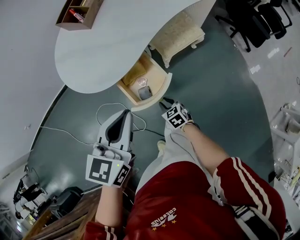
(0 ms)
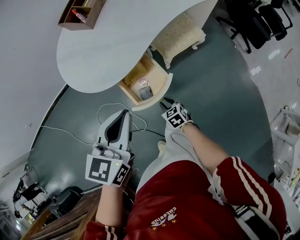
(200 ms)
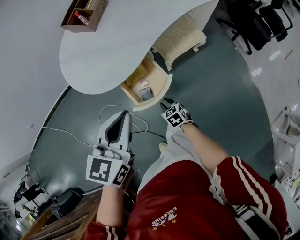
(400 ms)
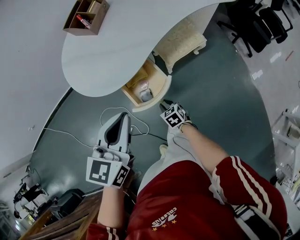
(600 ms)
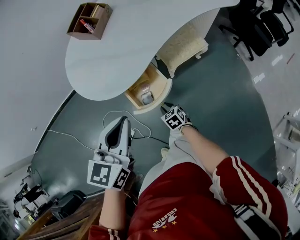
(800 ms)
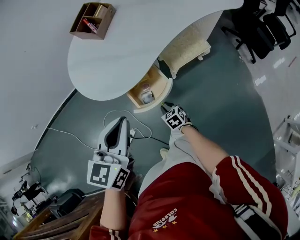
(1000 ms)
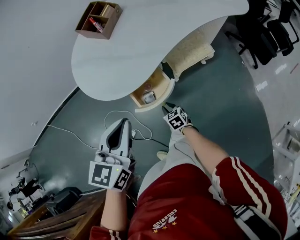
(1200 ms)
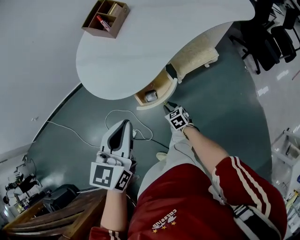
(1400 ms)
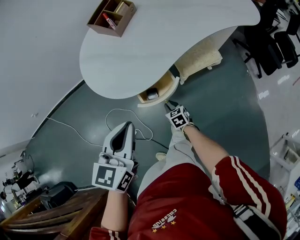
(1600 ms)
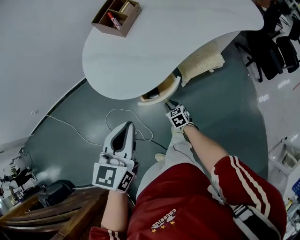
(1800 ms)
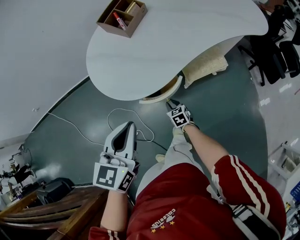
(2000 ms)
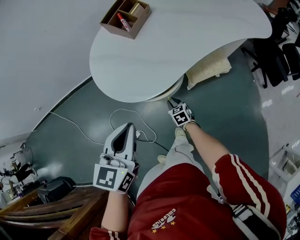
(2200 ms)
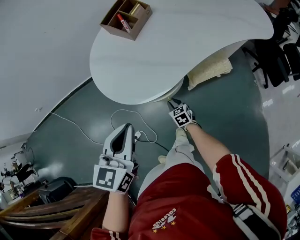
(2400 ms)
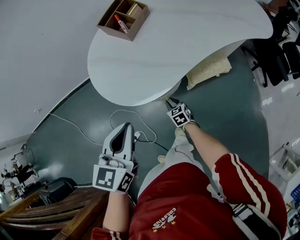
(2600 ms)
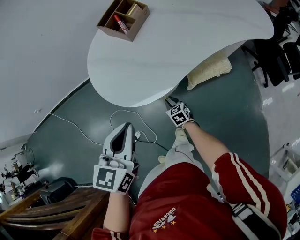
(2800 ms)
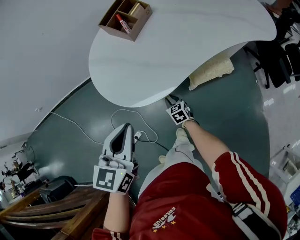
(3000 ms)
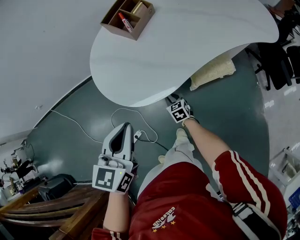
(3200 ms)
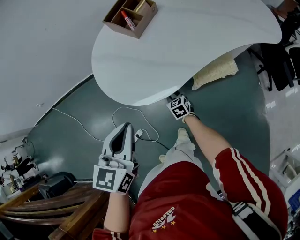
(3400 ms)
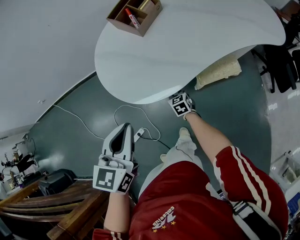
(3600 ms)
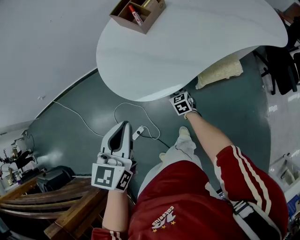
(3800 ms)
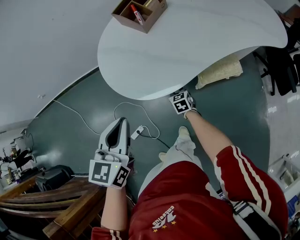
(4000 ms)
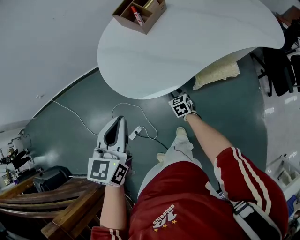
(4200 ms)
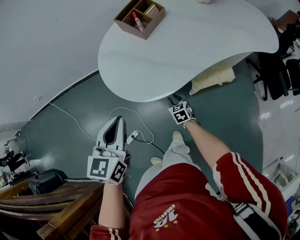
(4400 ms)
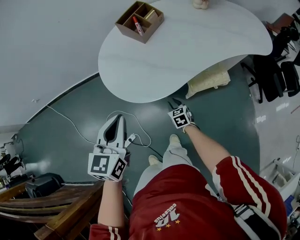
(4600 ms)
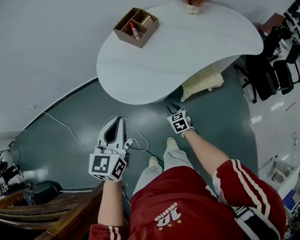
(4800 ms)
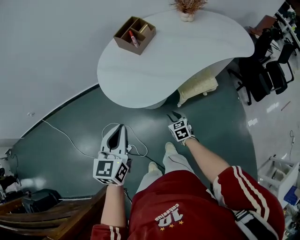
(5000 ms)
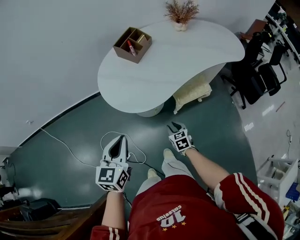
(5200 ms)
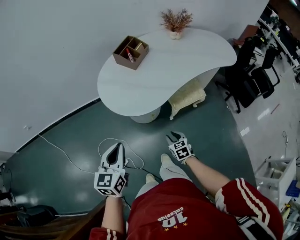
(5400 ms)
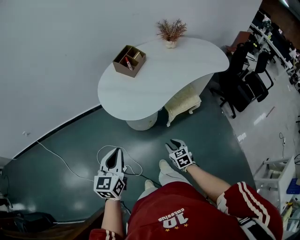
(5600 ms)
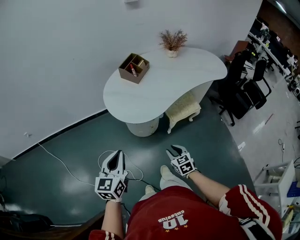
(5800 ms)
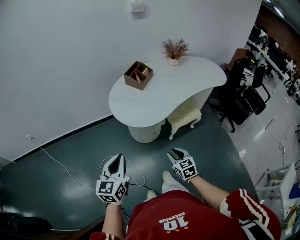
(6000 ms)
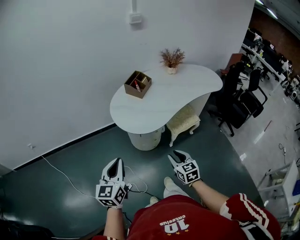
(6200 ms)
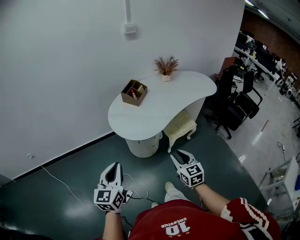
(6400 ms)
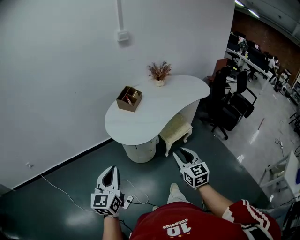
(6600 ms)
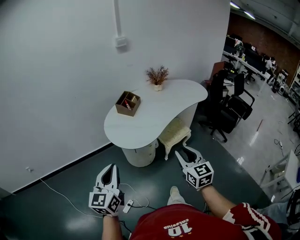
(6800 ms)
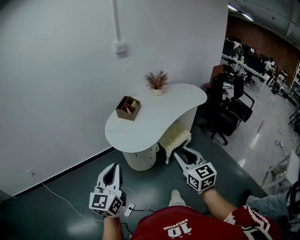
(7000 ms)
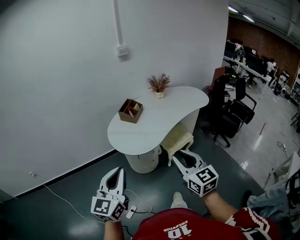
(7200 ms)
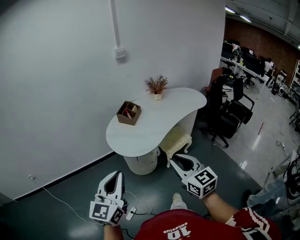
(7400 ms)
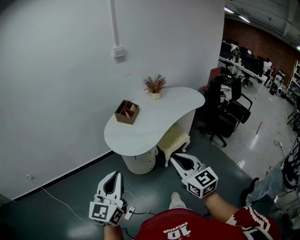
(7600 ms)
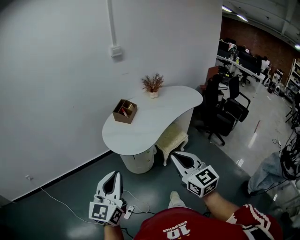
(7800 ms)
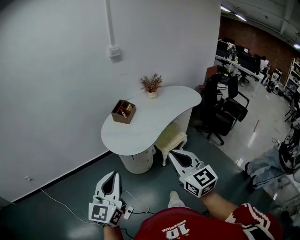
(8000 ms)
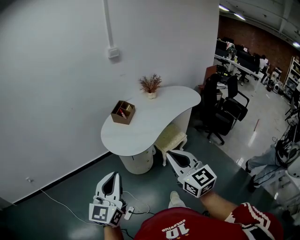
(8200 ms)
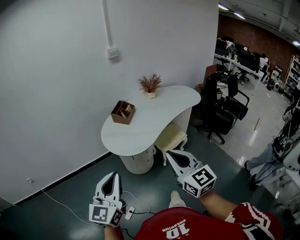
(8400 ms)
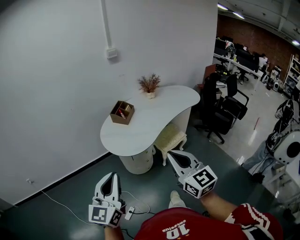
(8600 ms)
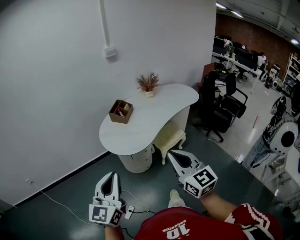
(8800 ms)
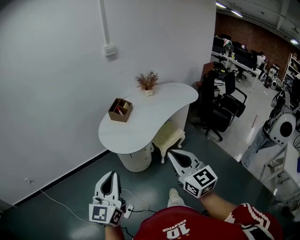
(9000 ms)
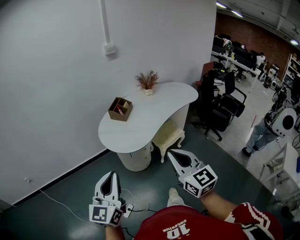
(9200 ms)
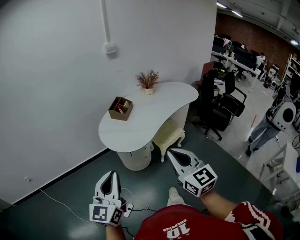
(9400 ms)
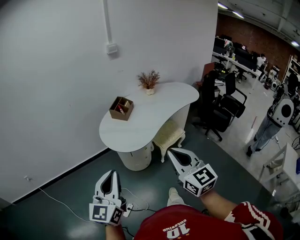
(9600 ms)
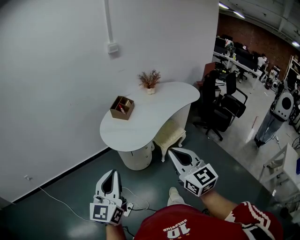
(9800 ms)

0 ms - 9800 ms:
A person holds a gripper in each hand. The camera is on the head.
0 ms - 1400 ms: The left gripper shifts by about 5 cm, while the right gripper travels forward by about 5 cm.
1400 ms - 2800 ms: The left gripper is displaced forward by approximately 5 cm. Meanwhile the right gripper moves forward, approximately 10 cm.
2800 ms - 4200 ms: The left gripper is displaced to the left by some 5 cm.
4200 ms - 5600 ms: The right gripper travels backward and upward by about 30 cm. Meanwhile the left gripper goes approximately 15 cm backward and to the left.
5600 ms - 7000 ms: The left gripper shifts some 20 cm upward and backward, and rotates about 20 degrees. The right gripper heads upward, covering some 35 cm, and tips its fingers upward by some 30 degrees.
7000 ms - 8400 ms: The right gripper heads upward, covering roughly 10 cm, and closes. Meanwhile the left gripper shifts by some 5 cm.
8400 ms - 9800 ms: The grippers make only small movements.

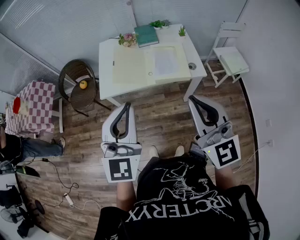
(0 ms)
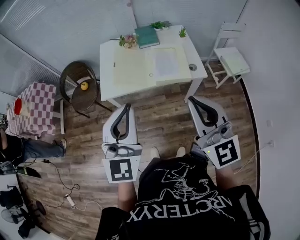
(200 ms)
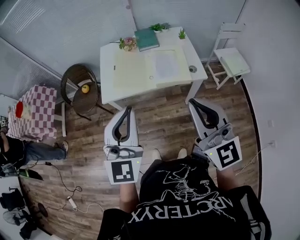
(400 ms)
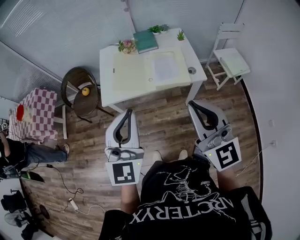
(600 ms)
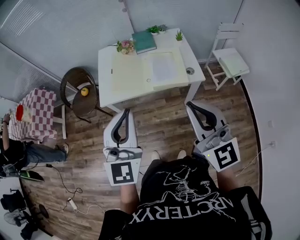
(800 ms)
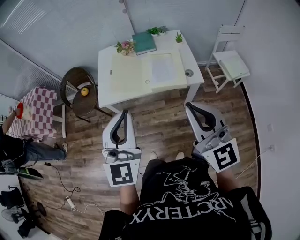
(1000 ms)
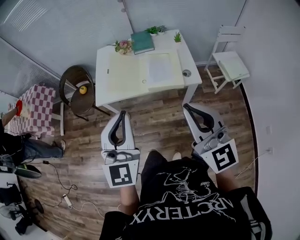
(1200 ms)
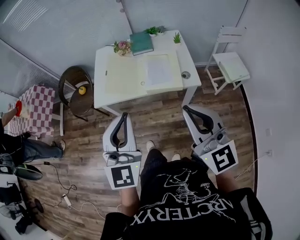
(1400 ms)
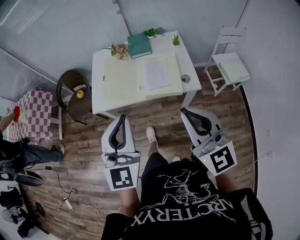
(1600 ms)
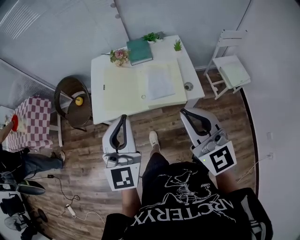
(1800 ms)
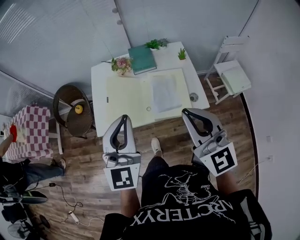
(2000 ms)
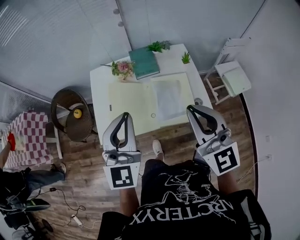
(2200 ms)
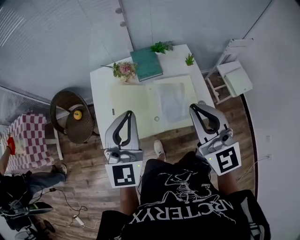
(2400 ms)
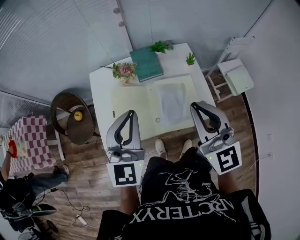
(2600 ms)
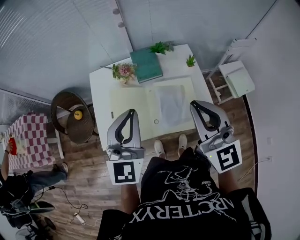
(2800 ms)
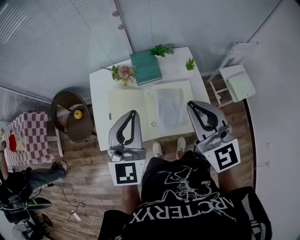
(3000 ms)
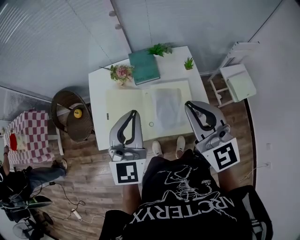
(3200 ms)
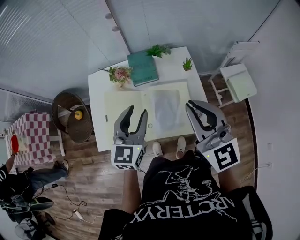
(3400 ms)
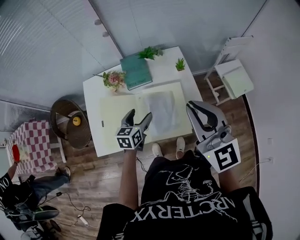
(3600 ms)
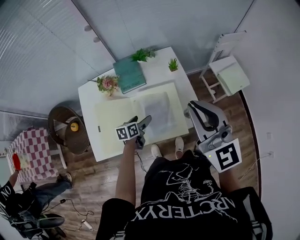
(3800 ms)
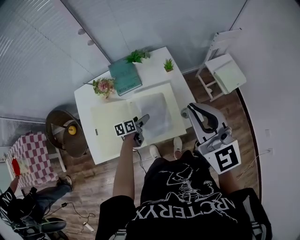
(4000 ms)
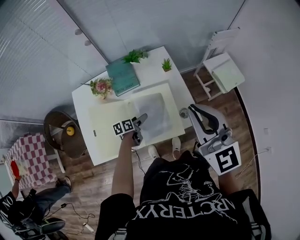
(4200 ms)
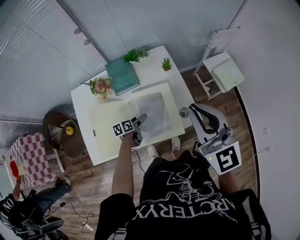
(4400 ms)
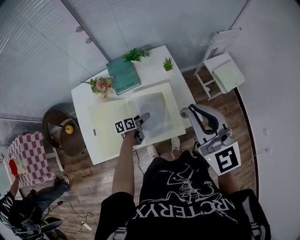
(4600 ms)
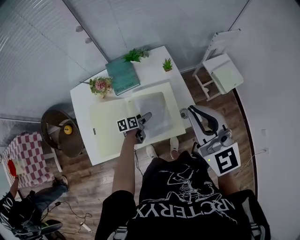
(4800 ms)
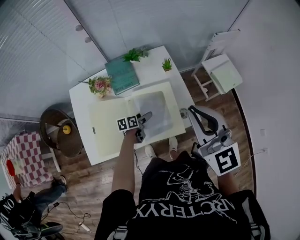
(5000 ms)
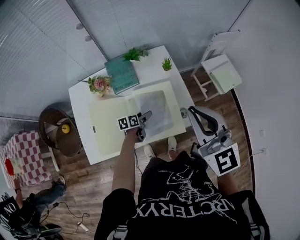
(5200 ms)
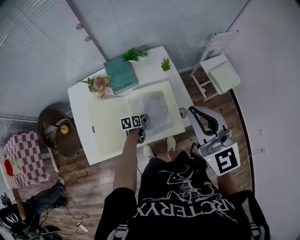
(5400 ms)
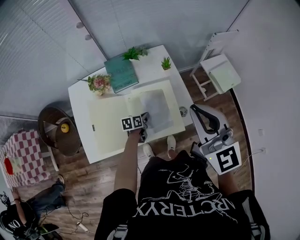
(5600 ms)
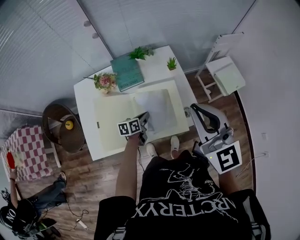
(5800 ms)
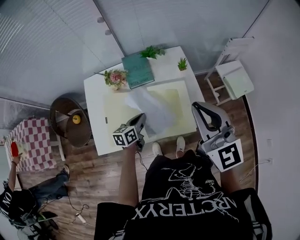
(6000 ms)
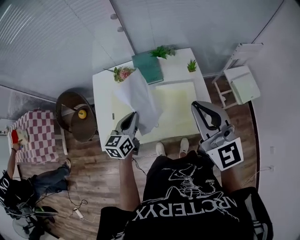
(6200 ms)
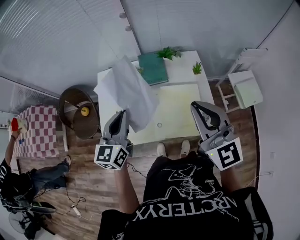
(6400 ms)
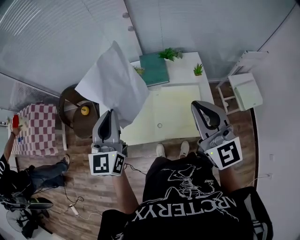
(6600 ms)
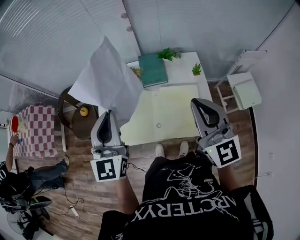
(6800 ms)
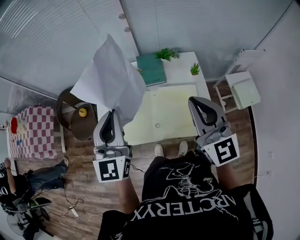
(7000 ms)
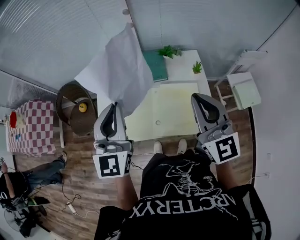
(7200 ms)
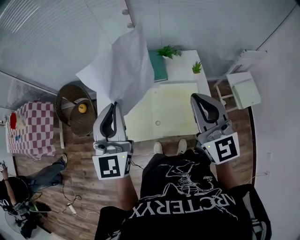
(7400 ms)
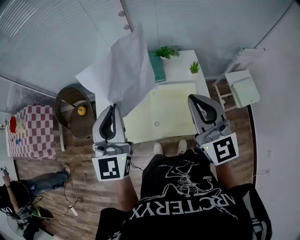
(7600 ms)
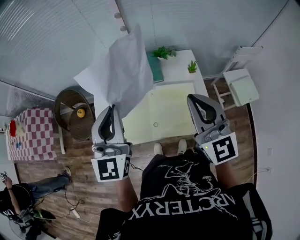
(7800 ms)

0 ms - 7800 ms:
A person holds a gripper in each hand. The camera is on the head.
0 ms - 1600 ms: Both grippers move to the right and forward, about 10 cm.
1600 ms - 3200 ms: The two grippers go roughly 30 cm forward.
3200 ms - 4600 ms: The right gripper is displaced to the right by roughly 10 cm; the left gripper goes approximately 40 cm downward, rotates approximately 80 degrees, and opens up.
4600 ms - 6200 ms: The right gripper heads to the left, covering some 5 cm; the left gripper heads upward and to the left, covering about 25 cm, rotates approximately 40 degrees, and closes up.
6200 ms - 7800 ms: The left gripper goes roughly 20 cm upward, and rotates roughly 40 degrees.

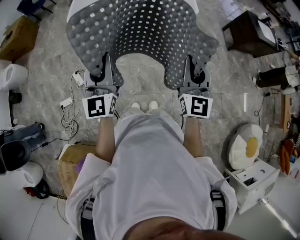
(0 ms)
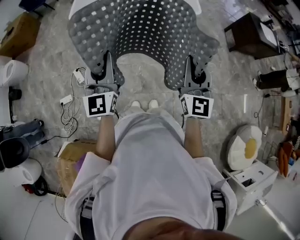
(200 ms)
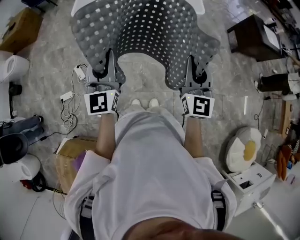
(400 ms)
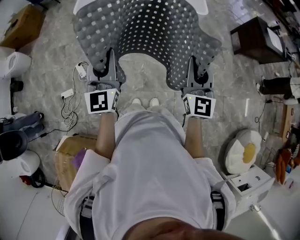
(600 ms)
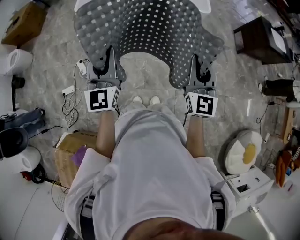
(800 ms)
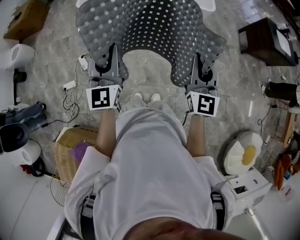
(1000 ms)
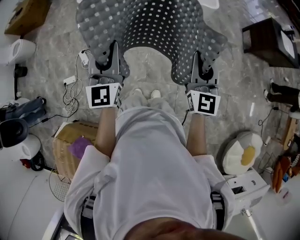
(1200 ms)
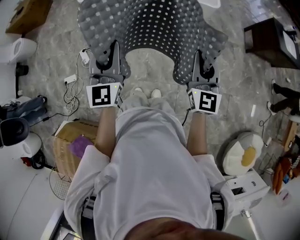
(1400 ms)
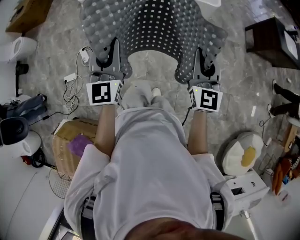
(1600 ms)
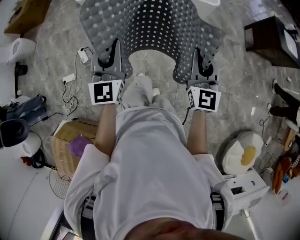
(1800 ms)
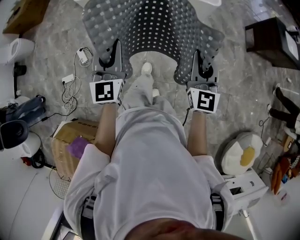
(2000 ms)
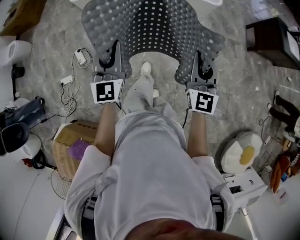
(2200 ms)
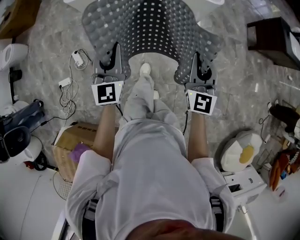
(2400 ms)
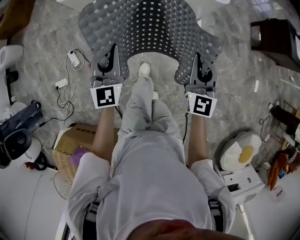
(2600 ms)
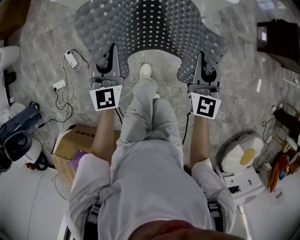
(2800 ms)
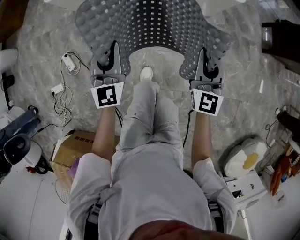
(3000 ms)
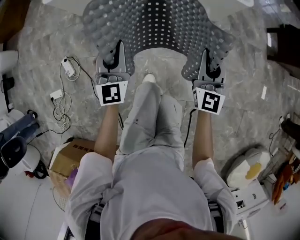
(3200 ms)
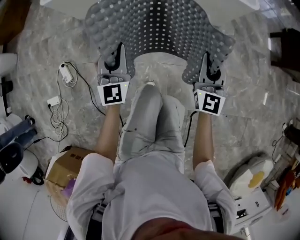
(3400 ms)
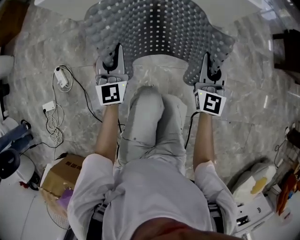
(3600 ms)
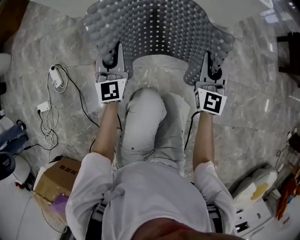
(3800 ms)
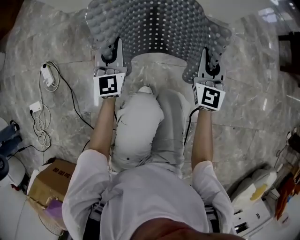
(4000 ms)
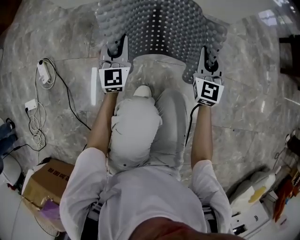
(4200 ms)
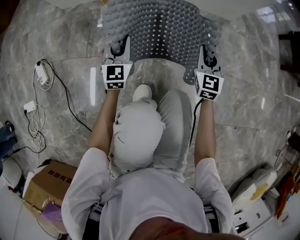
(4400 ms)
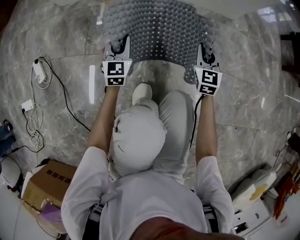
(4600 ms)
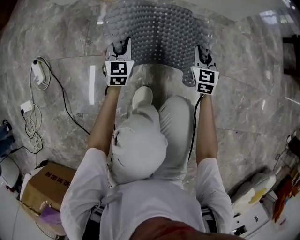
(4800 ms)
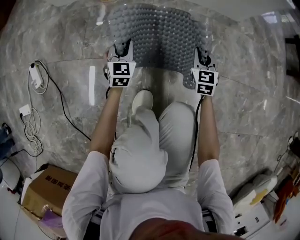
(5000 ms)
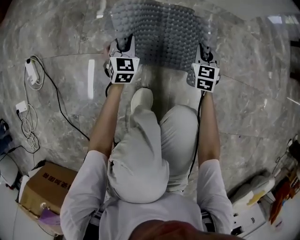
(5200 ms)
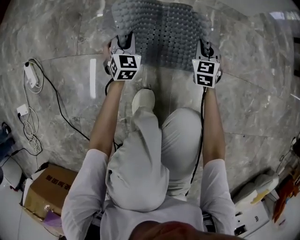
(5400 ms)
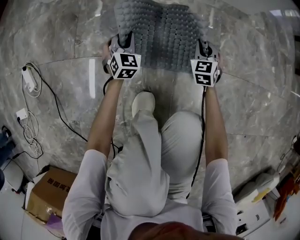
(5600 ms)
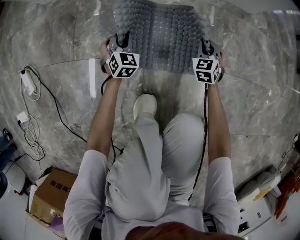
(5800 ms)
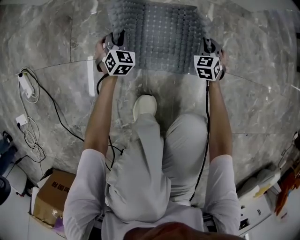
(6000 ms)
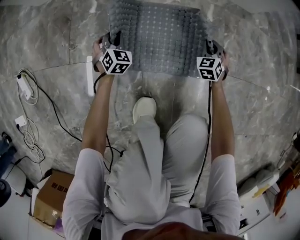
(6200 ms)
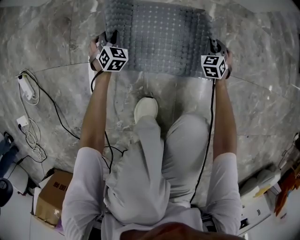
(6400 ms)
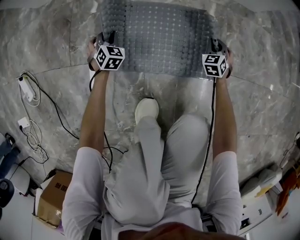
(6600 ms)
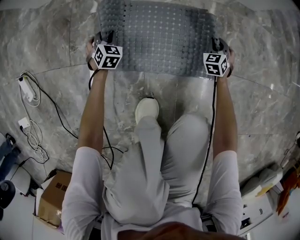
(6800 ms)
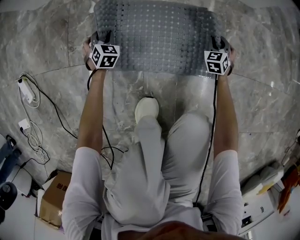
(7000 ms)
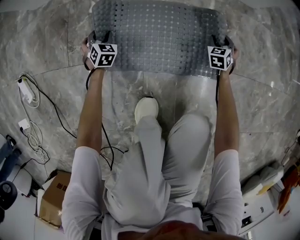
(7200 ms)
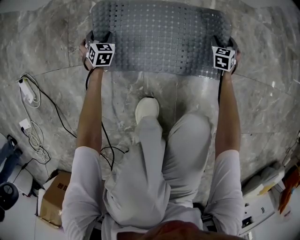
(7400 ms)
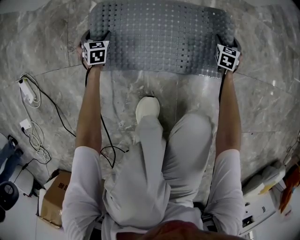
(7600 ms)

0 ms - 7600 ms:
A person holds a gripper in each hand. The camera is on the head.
0 ms - 1600 ms: The left gripper shifts some 10 cm to the right, while the right gripper heads to the right, downward and forward, covering about 10 cm.
1600 ms - 3000 ms: Both grippers travel together downward and forward, approximately 40 cm.
3000 ms - 4600 ms: The two grippers go about 50 cm downward.
4600 ms - 6000 ms: Both grippers move downward, roughly 25 cm. The right gripper rotates some 30 degrees, while the left gripper rotates some 30 degrees.
6000 ms - 7600 ms: The left gripper shifts some 15 cm to the left and downward, and opens its fingers. Meanwhile the right gripper heads to the right and downward, covering approximately 10 cm, rotates roughly 20 degrees, and opens up.
